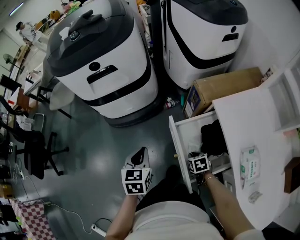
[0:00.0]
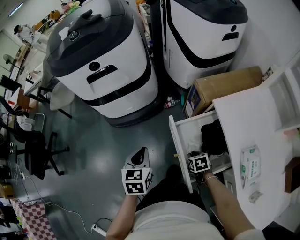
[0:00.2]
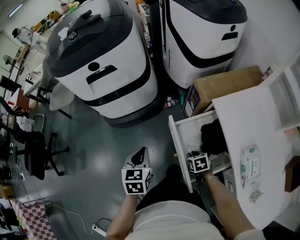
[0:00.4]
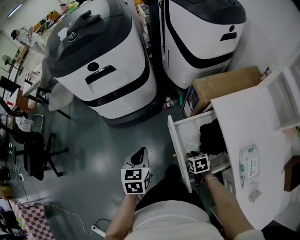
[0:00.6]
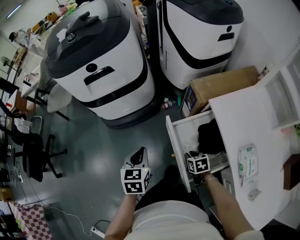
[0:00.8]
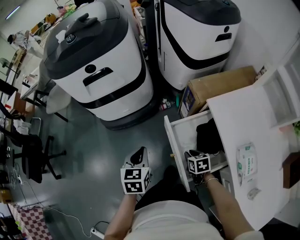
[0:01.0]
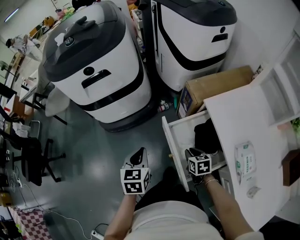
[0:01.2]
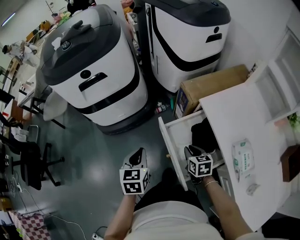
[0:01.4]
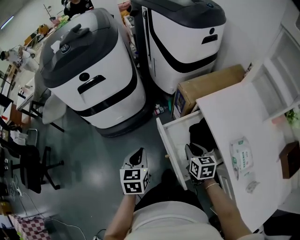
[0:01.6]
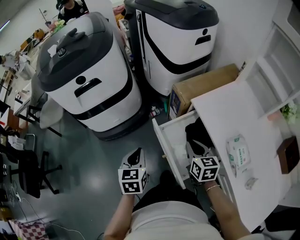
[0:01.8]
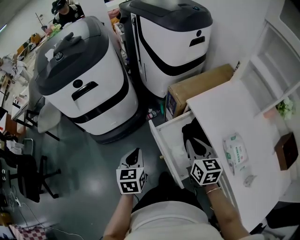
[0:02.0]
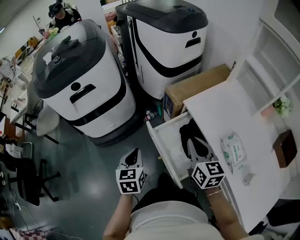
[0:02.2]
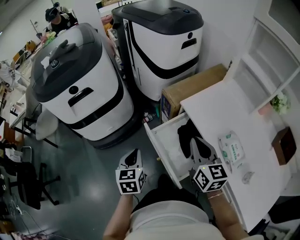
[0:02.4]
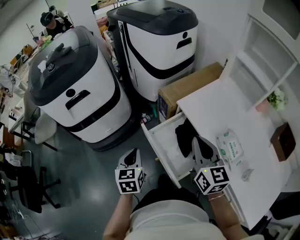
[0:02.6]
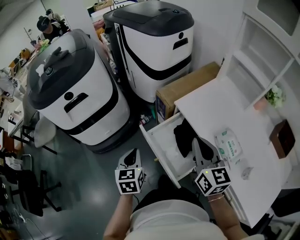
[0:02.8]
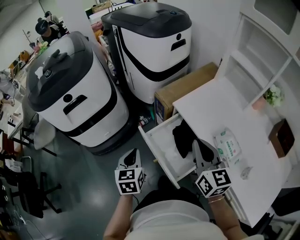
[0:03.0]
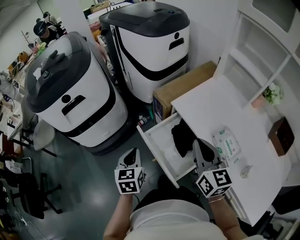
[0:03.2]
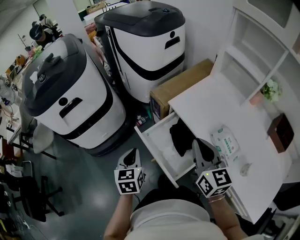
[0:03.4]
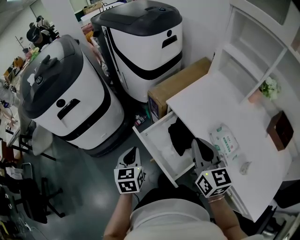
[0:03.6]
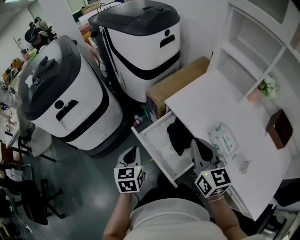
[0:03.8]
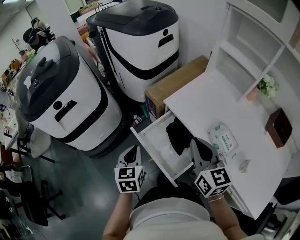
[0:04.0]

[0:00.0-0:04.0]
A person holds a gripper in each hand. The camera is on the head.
0:00.0 to 0:01.4: The right gripper heads upward, covering roughly 10 cm, and rotates roughly 20 degrees.
0:01.4 to 0:02.6: The right gripper is displaced upward by some 25 cm, and points its fingers some 30 degrees further upward.
0:02.6 to 0:04.0: The left gripper moves approximately 5 cm.

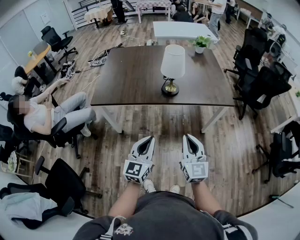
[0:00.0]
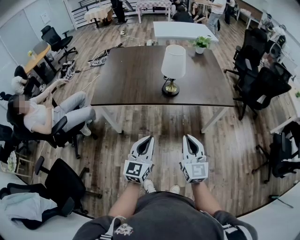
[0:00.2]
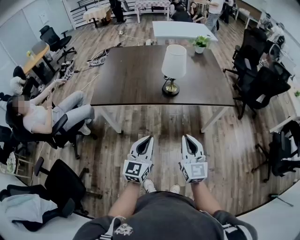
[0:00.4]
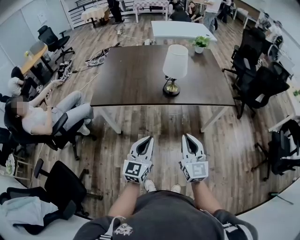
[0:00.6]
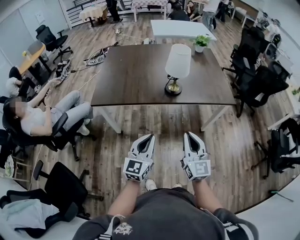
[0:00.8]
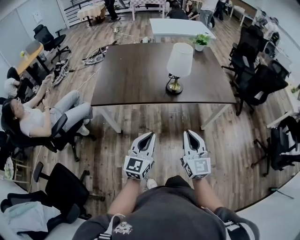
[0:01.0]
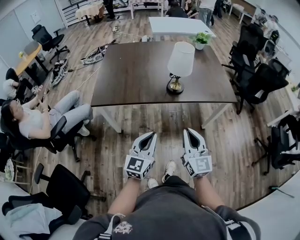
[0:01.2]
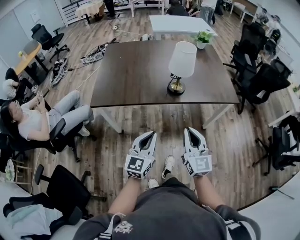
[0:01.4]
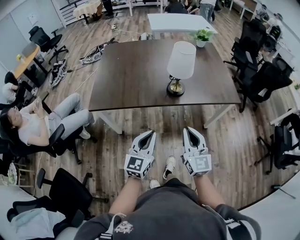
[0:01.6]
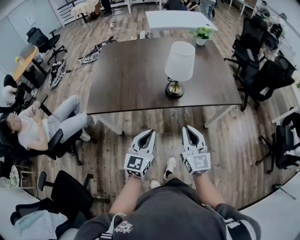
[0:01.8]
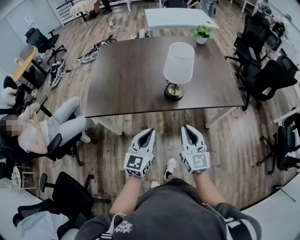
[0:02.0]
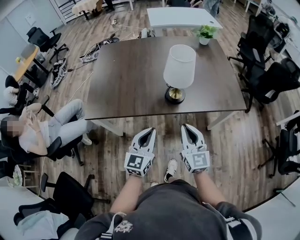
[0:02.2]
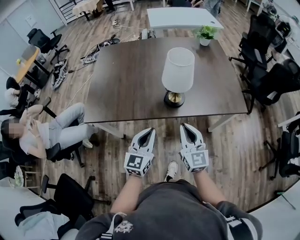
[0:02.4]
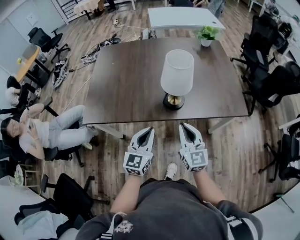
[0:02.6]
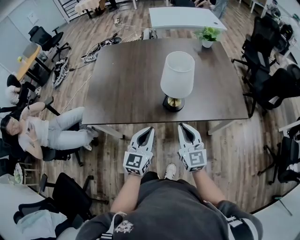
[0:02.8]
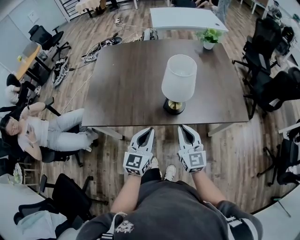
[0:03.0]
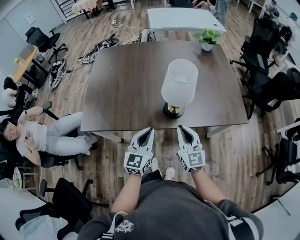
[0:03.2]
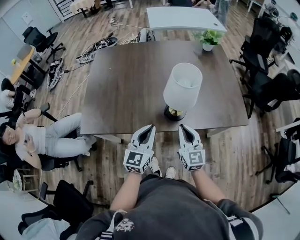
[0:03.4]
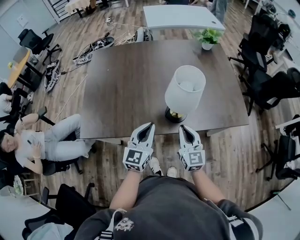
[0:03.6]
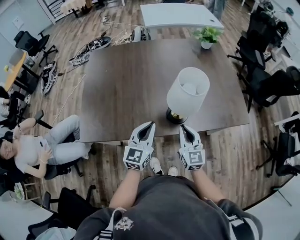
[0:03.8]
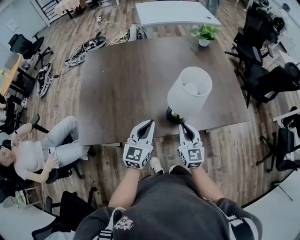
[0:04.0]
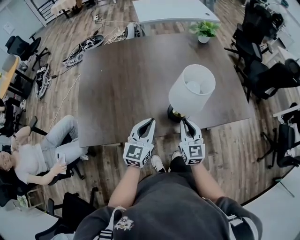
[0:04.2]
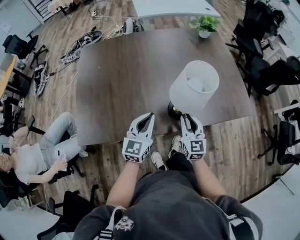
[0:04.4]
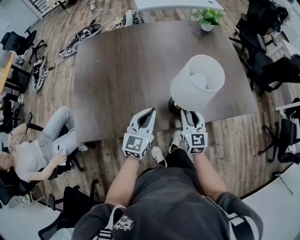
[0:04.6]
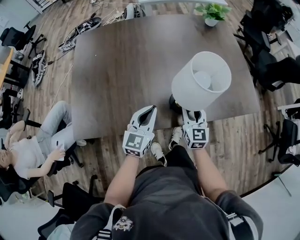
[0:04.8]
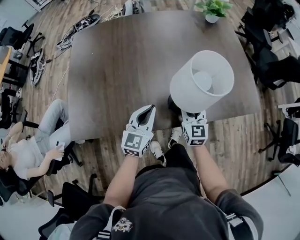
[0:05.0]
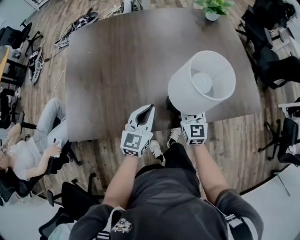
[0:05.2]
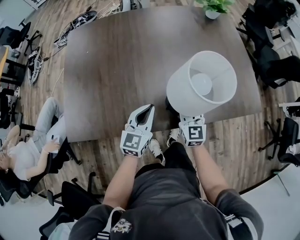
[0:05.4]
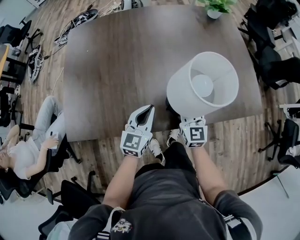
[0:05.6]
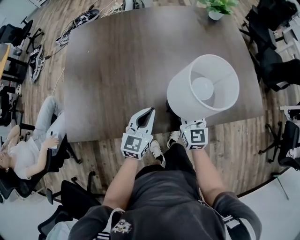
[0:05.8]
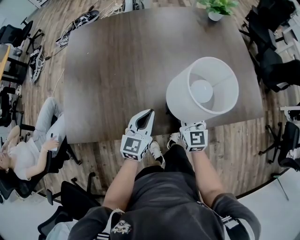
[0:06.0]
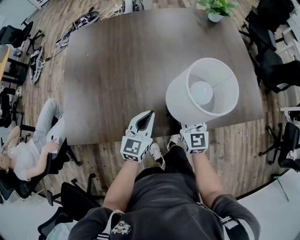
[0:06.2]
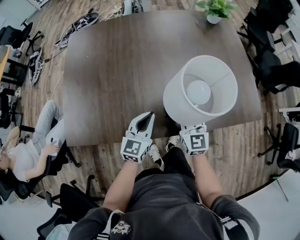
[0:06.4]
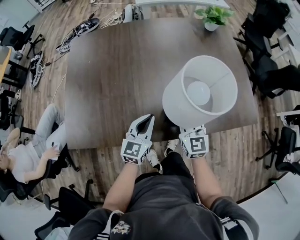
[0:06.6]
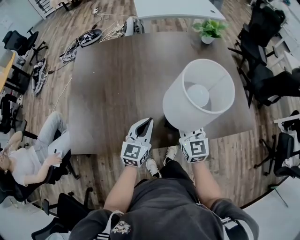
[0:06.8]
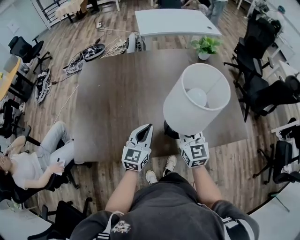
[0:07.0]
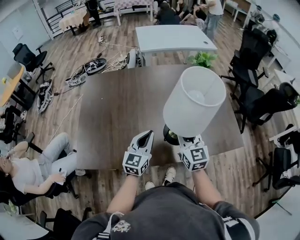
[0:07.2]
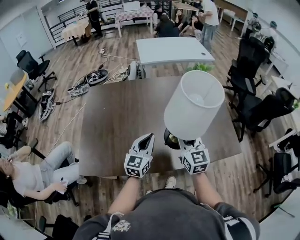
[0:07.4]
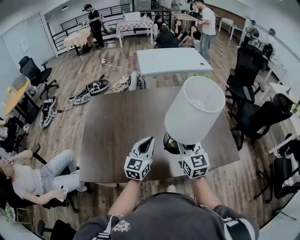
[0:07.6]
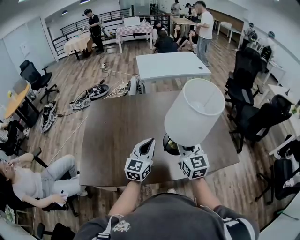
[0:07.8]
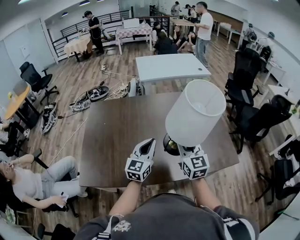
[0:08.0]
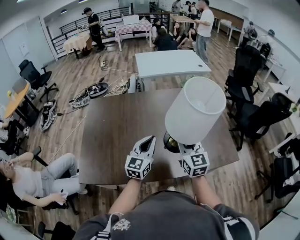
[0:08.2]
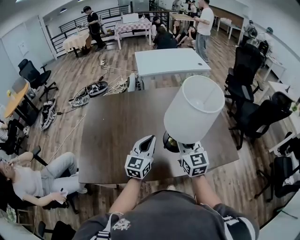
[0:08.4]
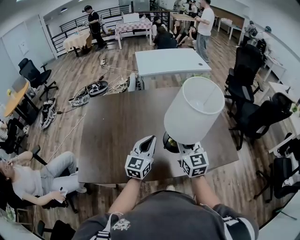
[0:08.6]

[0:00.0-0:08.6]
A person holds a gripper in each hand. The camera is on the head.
0:00.0 to 0:01.4: Both grippers move to the left and forward, roughly 10 cm.
0:01.4 to 0:02.8: Both grippers move forward, about 20 cm.
0:02.8 to 0:04.4: The left gripper goes roughly 20 cm forward and to the left; the right gripper heads forward and downward, covering some 15 cm.
0:04.4 to 0:05.8: The right gripper moves forward and downward, some 10 cm. The left gripper goes some 10 cm downward.
0:05.8 to 0:07.2: Both grippers travel together upward, some 15 cm.
0:07.2 to 0:08.6: The two grippers go approximately 5 cm upward.

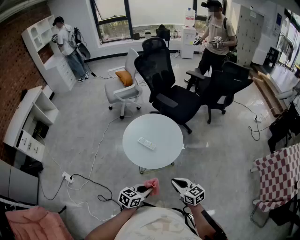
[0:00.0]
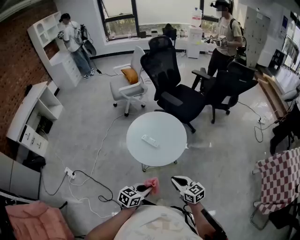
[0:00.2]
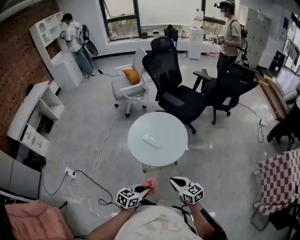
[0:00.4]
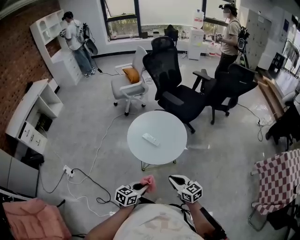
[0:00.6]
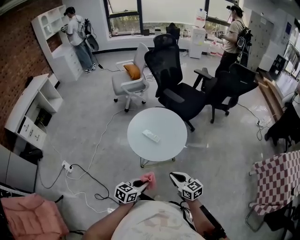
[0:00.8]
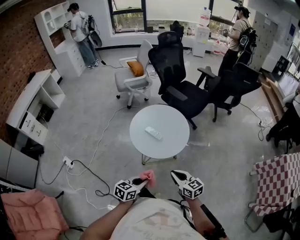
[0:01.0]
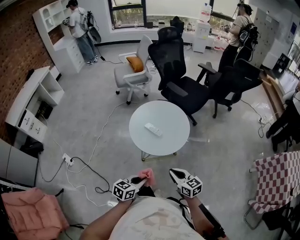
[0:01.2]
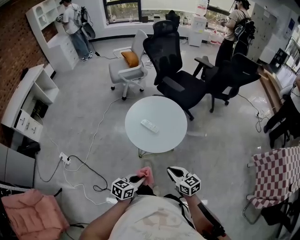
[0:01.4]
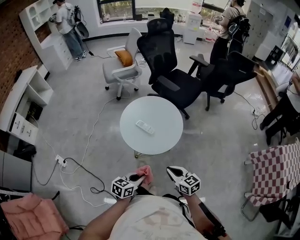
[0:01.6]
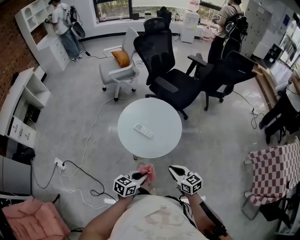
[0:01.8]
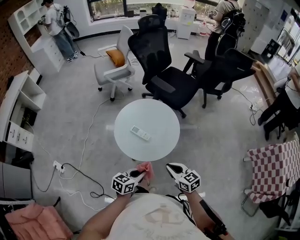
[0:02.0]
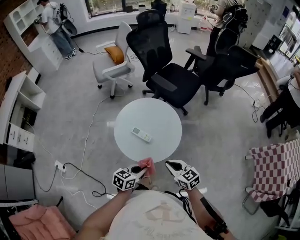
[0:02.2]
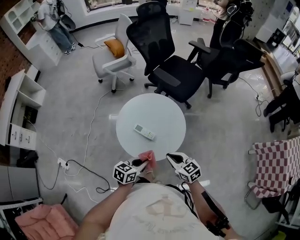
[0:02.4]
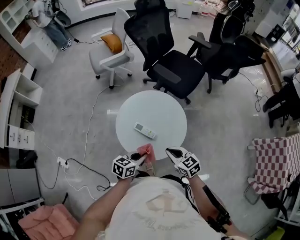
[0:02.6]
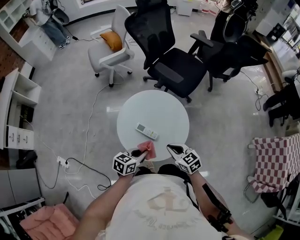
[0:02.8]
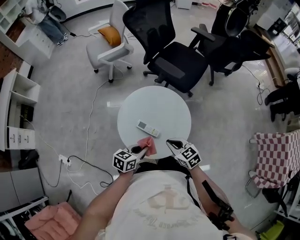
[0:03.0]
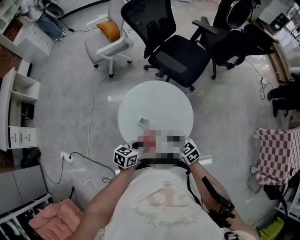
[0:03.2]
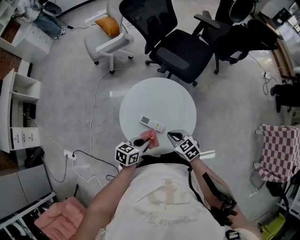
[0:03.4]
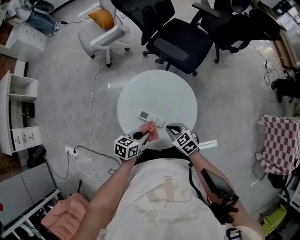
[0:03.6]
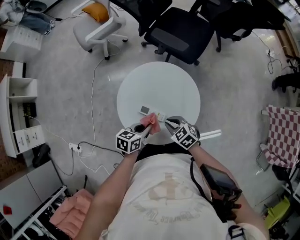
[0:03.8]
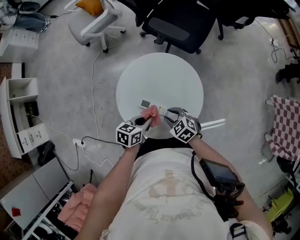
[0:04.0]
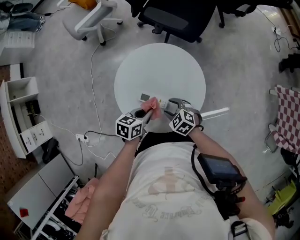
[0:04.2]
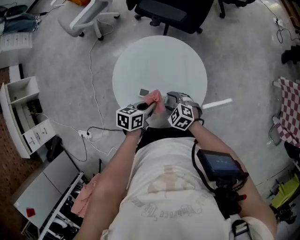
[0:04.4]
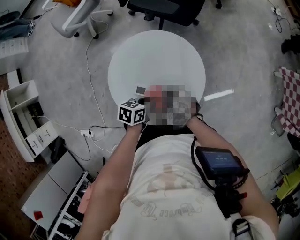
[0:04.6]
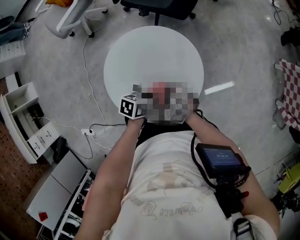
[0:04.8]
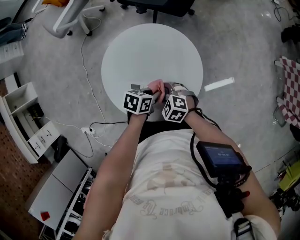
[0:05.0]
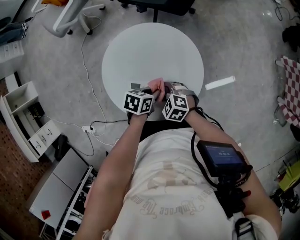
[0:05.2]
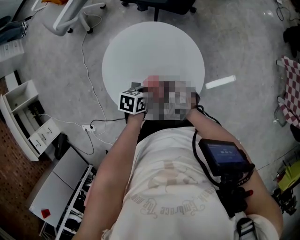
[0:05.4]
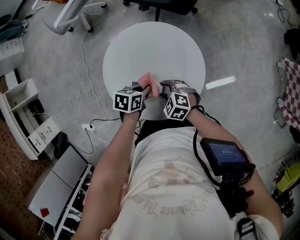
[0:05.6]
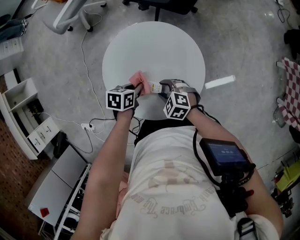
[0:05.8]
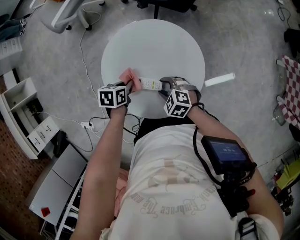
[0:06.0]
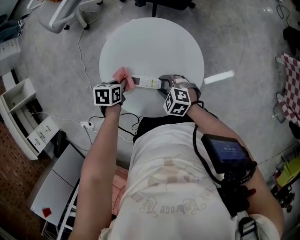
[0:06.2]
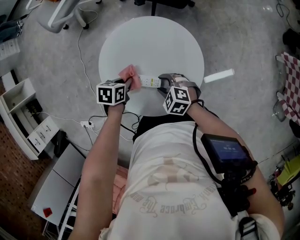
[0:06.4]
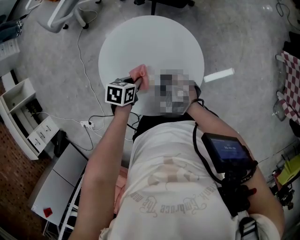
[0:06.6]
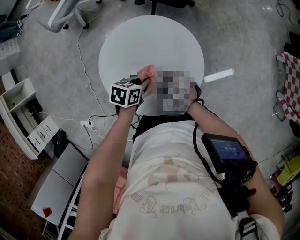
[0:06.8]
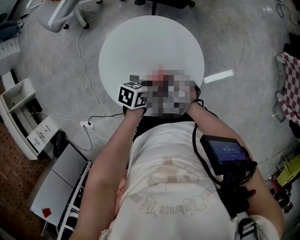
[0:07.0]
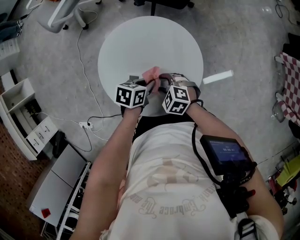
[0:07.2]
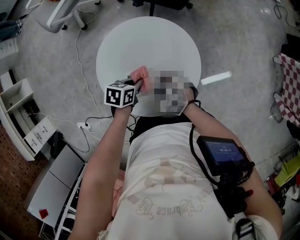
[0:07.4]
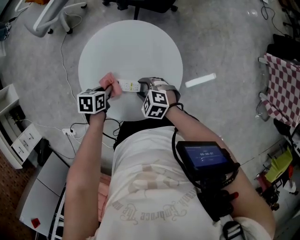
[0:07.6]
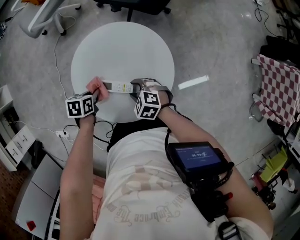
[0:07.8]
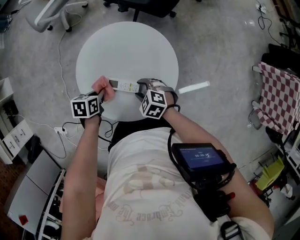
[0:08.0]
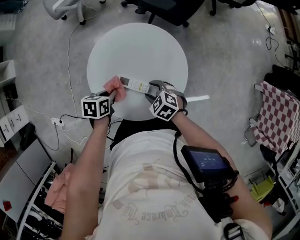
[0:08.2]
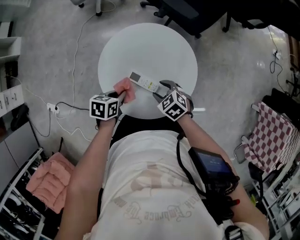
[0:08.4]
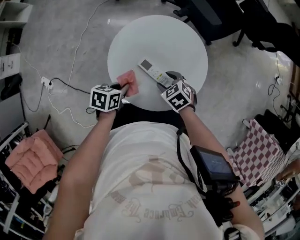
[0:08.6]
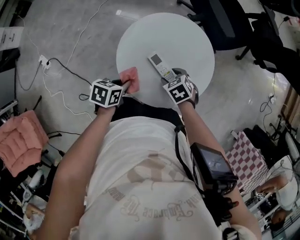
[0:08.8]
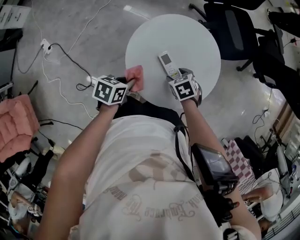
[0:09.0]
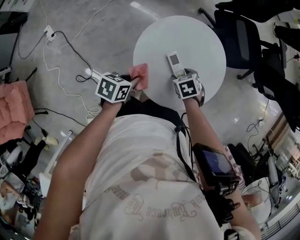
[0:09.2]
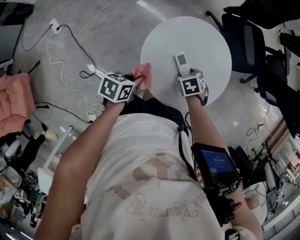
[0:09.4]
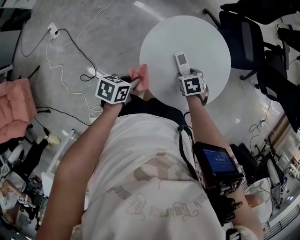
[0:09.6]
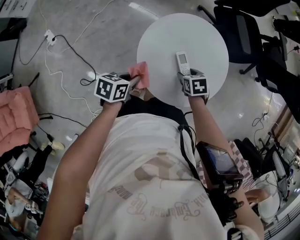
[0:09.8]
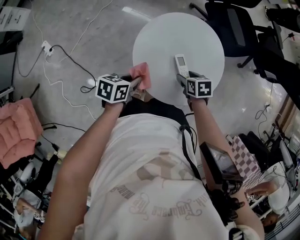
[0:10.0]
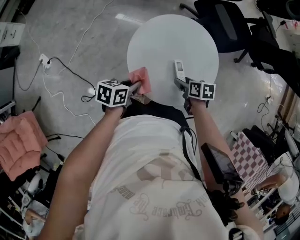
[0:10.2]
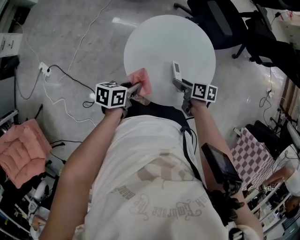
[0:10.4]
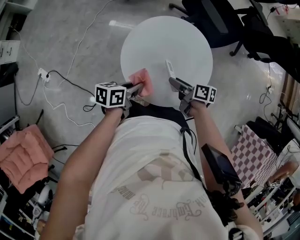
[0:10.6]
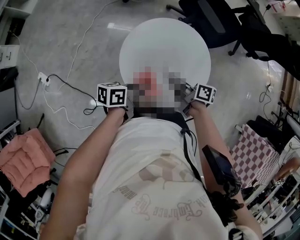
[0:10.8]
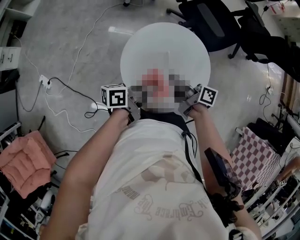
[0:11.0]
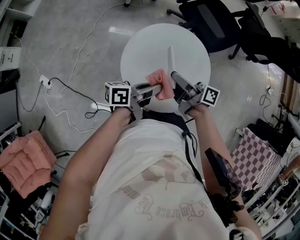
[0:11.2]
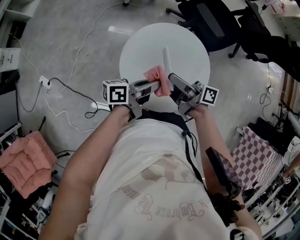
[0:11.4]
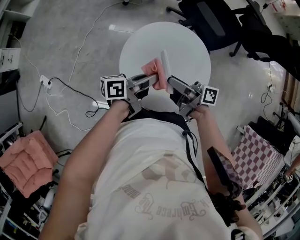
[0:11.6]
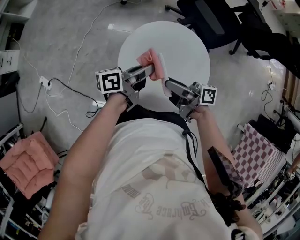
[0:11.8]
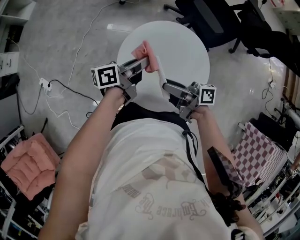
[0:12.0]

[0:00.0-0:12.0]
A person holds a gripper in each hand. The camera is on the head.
0:01.6 to 0:03.0: Both grippers travel together forward, about 25 cm.
0:03.0 to 0:04.4: The right gripper moves downward, roughly 15 cm, turns by some 20 degrees, and opens, while the left gripper moves downward, about 10 cm, and changes its angle by some 20 degrees.
0:04.4 to 0:06.0: The left gripper shifts by approximately 10 cm, and rotates approximately 20 degrees.
0:07.6 to 0:09.0: The left gripper moves about 15 cm, and turns by about 40 degrees.
0:09.0 to 0:10.4: The right gripper shifts by some 5 cm, and rolls clockwise, seen from behind, by roughly 50 degrees.
0:10.4 to 0:12.0: The right gripper moves upward and to the left, approximately 15 cm, and angles its fingers upward, by about 50 degrees, while the left gripper is displaced forward and upward by some 20 cm, and tilts its fingers about 30 degrees upward.
